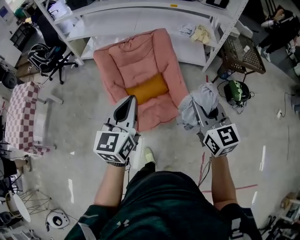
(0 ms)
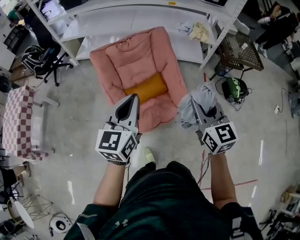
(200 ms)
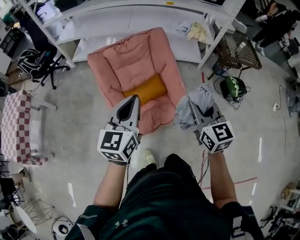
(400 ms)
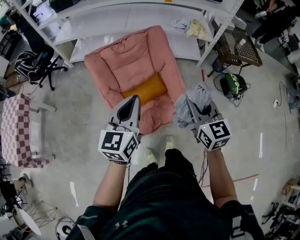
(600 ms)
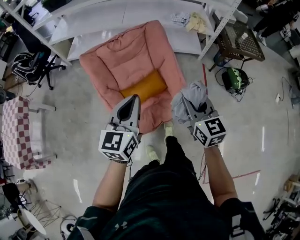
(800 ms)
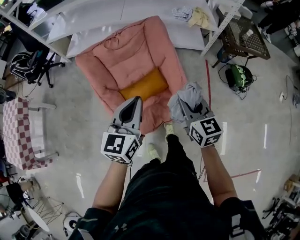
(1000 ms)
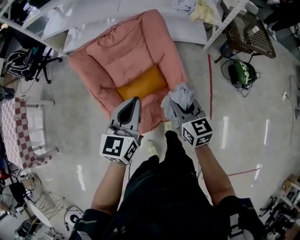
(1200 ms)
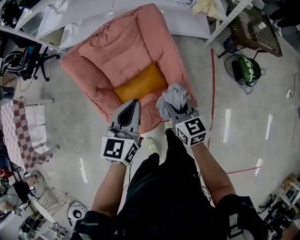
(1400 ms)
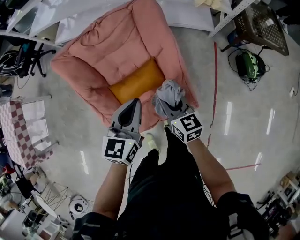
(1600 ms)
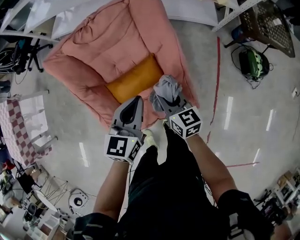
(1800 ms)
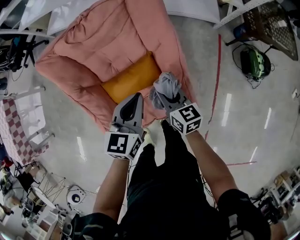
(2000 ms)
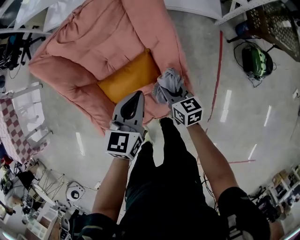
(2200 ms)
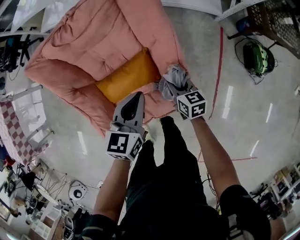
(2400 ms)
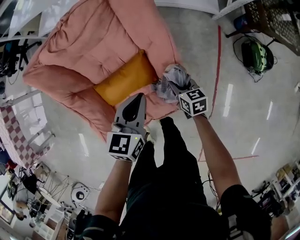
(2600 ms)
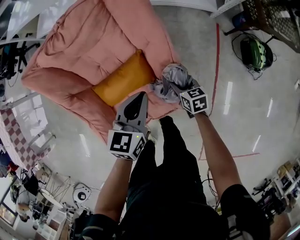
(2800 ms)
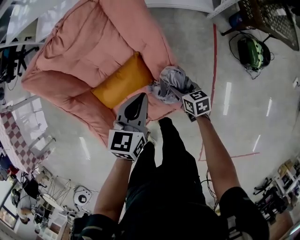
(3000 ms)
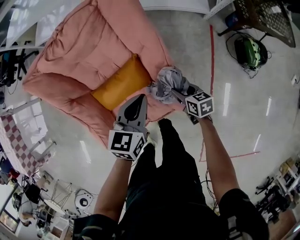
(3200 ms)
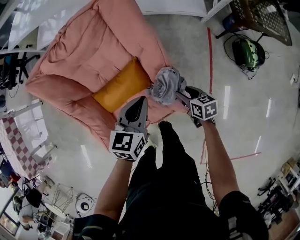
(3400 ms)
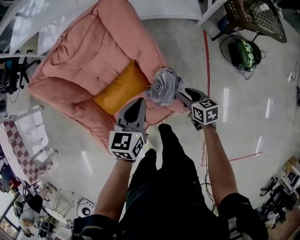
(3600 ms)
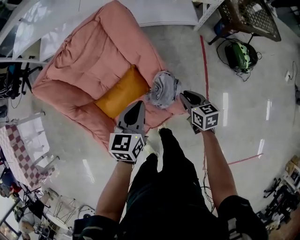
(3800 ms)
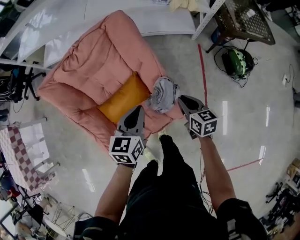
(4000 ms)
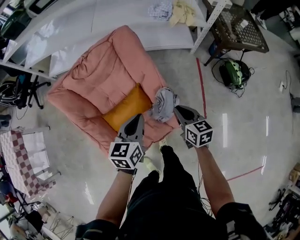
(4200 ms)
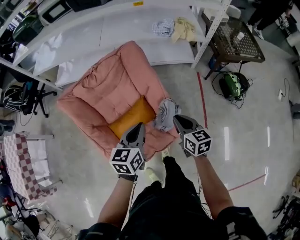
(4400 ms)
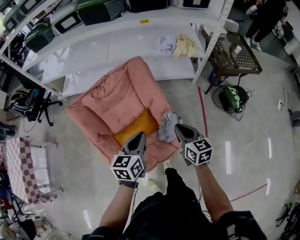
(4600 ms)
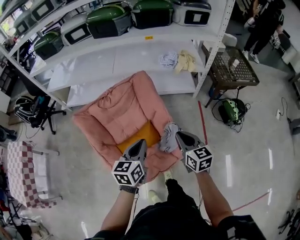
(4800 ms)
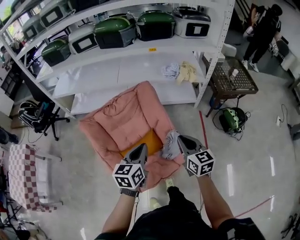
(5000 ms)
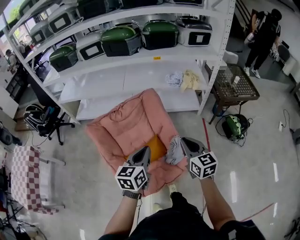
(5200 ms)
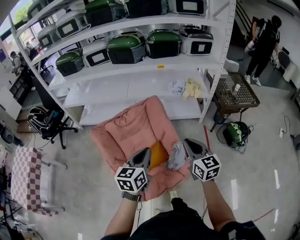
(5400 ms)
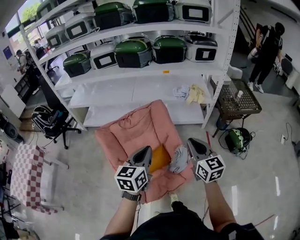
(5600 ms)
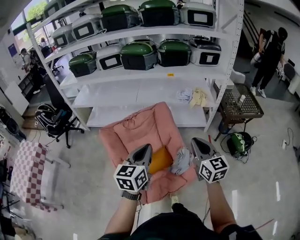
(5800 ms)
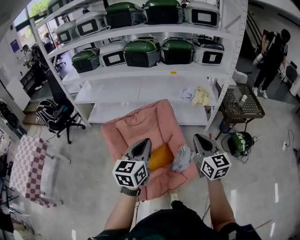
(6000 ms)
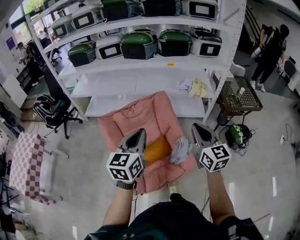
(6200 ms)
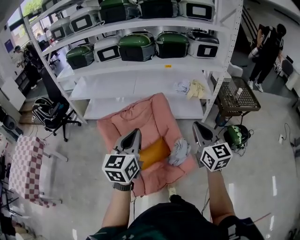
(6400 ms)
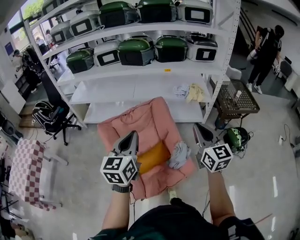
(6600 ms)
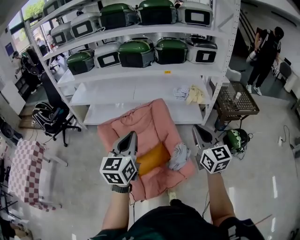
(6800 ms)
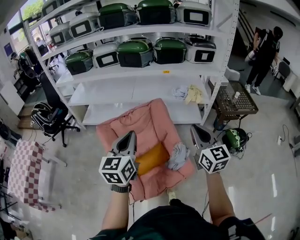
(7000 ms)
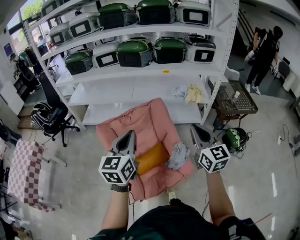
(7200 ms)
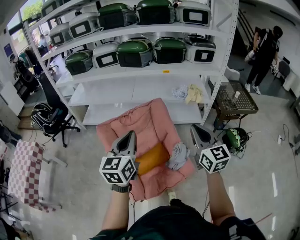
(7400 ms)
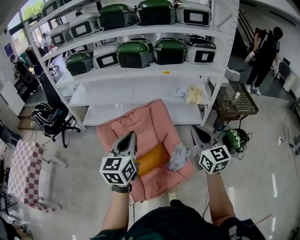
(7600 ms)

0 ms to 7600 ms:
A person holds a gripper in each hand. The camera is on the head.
0 ms to 1600 ms: The right gripper heads downward and forward, covering roughly 40 cm, and turns by some 30 degrees; the left gripper is displaced forward and downward by about 35 cm.
1600 ms to 3000 ms: The right gripper heads downward and to the right, covering roughly 30 cm, changes its angle by roughly 30 degrees, and opens its fingers. The left gripper heads downward, to the right and forward, covering approximately 20 cm.
3000 ms to 4600 ms: The right gripper moves upward, approximately 35 cm, turns by some 30 degrees, and closes; the left gripper moves upward and backward, about 20 cm.
4600 ms to 6000 ms: Both grippers travel together upward, approximately 25 cm. The right gripper swivels some 20 degrees.
6000 ms to 7600 ms: The left gripper changes place by some 5 cm.

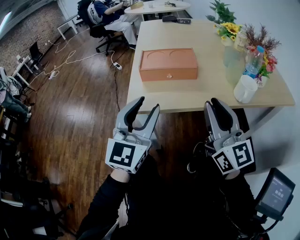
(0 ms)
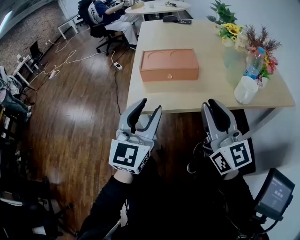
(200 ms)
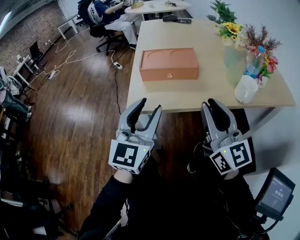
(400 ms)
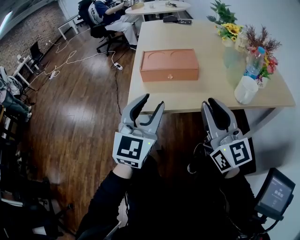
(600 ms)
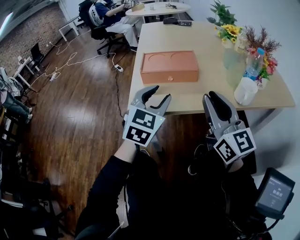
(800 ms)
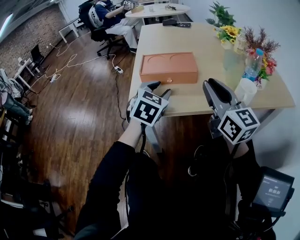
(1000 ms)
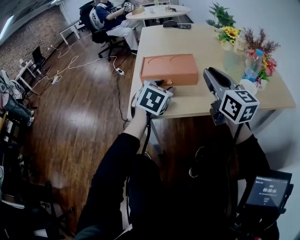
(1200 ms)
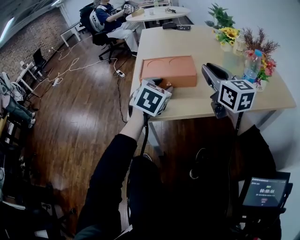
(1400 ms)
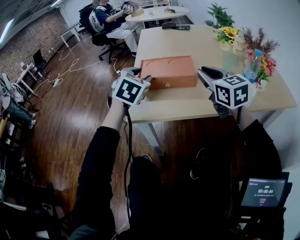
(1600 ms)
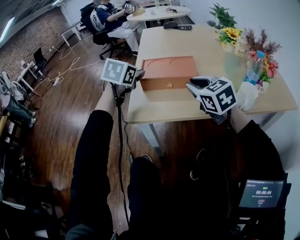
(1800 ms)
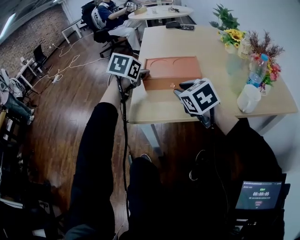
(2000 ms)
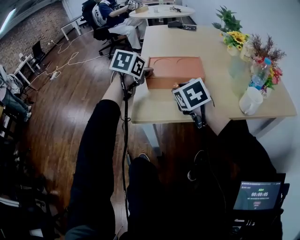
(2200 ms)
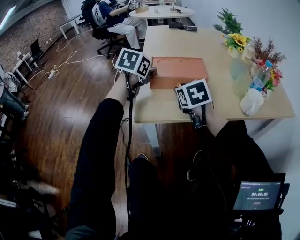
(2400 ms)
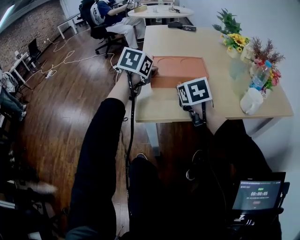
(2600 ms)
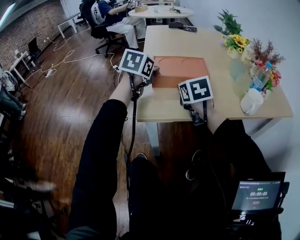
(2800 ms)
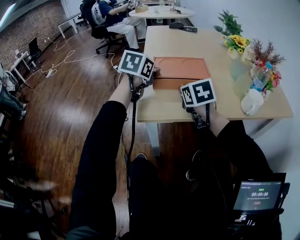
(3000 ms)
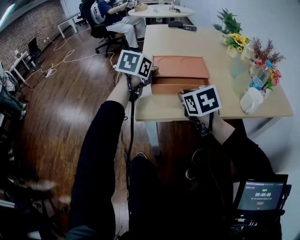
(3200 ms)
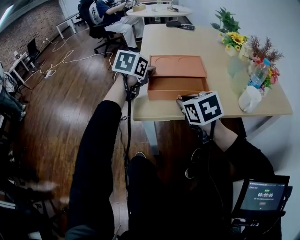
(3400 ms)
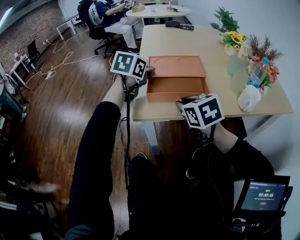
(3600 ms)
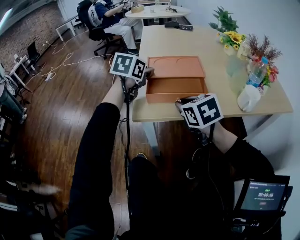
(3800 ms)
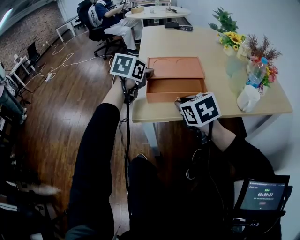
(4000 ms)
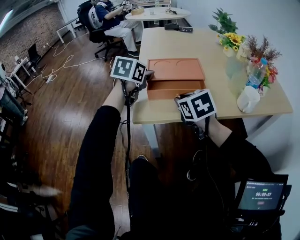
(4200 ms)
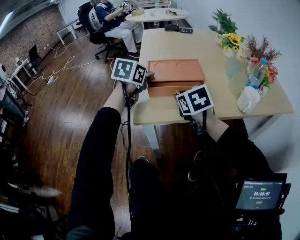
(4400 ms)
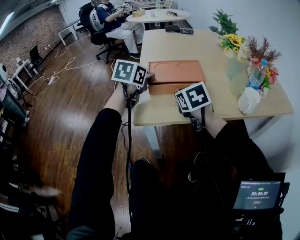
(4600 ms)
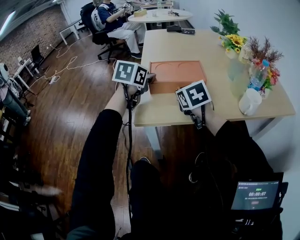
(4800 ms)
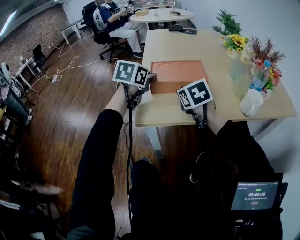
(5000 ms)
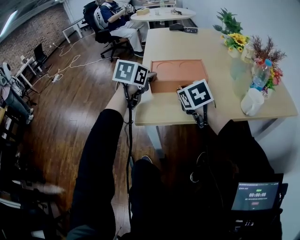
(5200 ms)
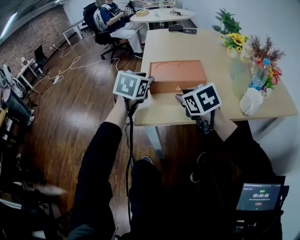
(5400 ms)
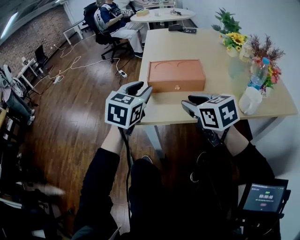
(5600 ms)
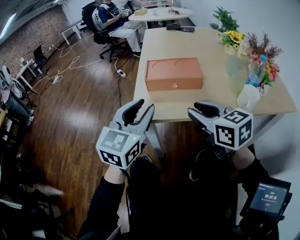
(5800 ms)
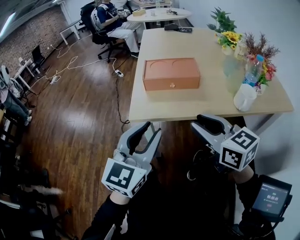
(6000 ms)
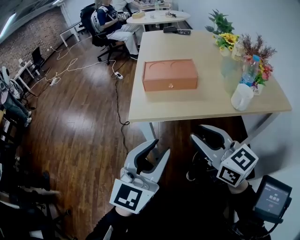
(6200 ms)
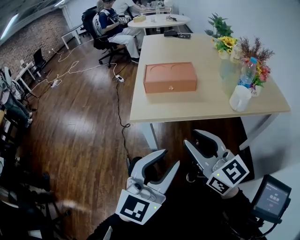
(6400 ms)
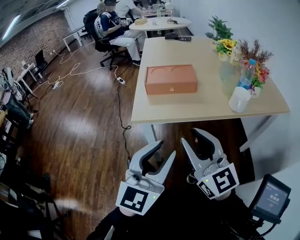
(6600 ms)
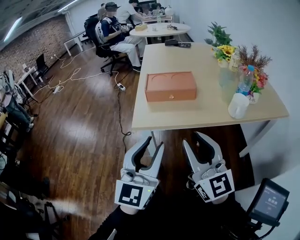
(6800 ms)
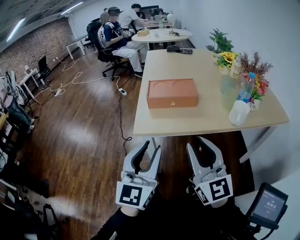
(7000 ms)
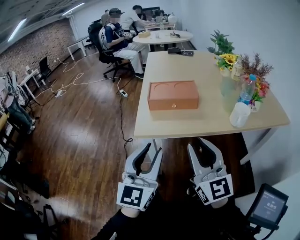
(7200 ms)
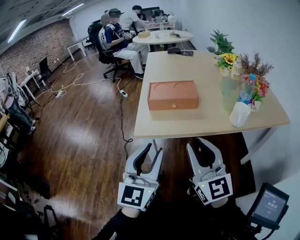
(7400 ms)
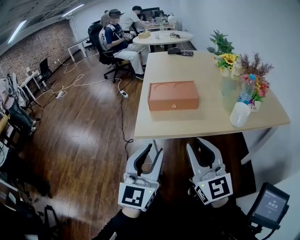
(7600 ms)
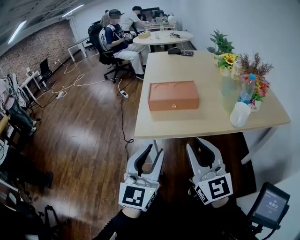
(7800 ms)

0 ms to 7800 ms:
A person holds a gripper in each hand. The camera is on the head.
0 ms to 1600 ms: Both grippers travel together forward, roughly 20 cm. The right gripper rotates roughly 30 degrees; the left gripper tips its fingers downward by approximately 40 degrees.
1600 ms to 3200 ms: The right gripper heads to the left and downward, covering some 15 cm, and turns by some 30 degrees, while the left gripper ends up about 5 cm from where it was, and turns by about 30 degrees.
3200 ms to 4600 ms: The grippers stay close to where they were, moving slightly.
4600 ms to 6200 ms: Both grippers move backward, roughly 30 cm. The right gripper tips its fingers upward by approximately 30 degrees; the left gripper points its fingers about 40 degrees further upward.
6200 ms to 7800 ms: The right gripper turns by approximately 30 degrees.

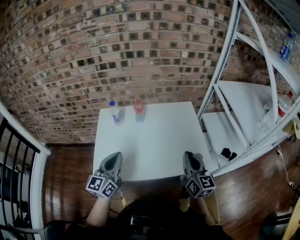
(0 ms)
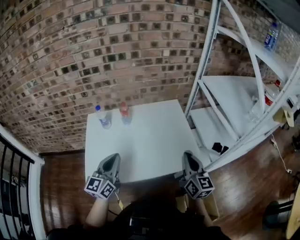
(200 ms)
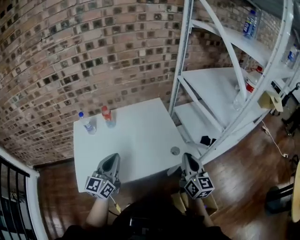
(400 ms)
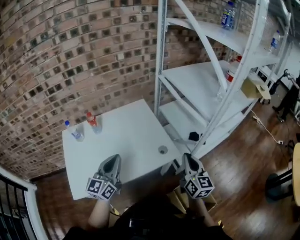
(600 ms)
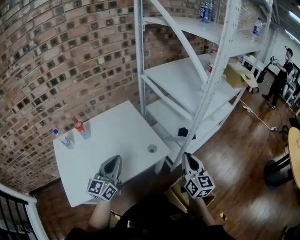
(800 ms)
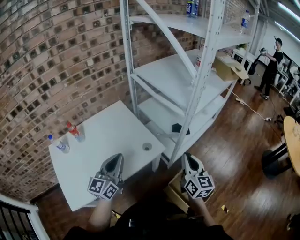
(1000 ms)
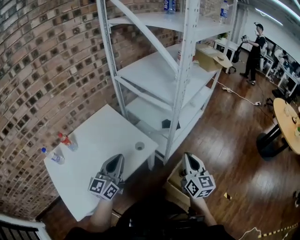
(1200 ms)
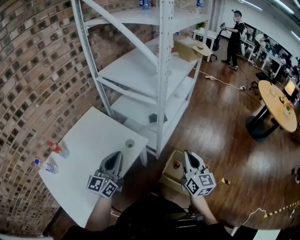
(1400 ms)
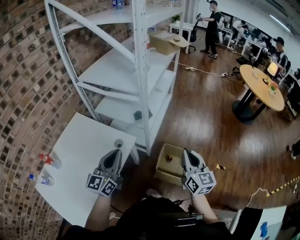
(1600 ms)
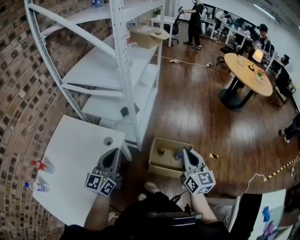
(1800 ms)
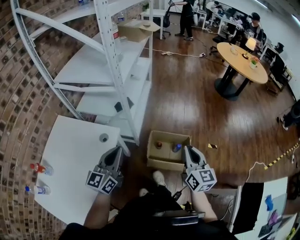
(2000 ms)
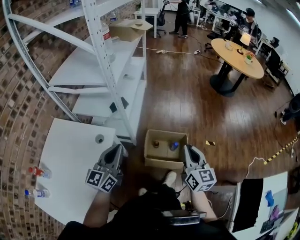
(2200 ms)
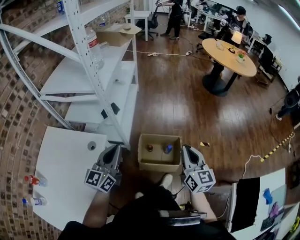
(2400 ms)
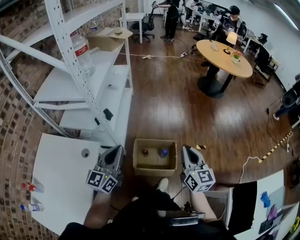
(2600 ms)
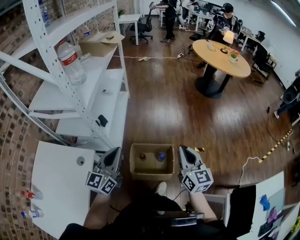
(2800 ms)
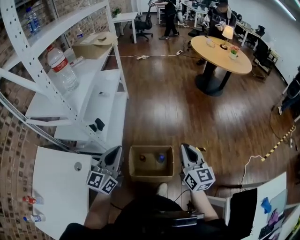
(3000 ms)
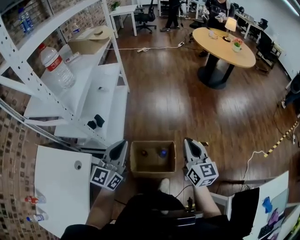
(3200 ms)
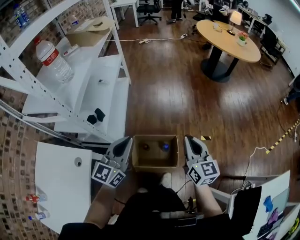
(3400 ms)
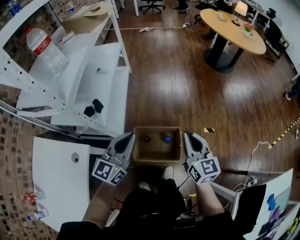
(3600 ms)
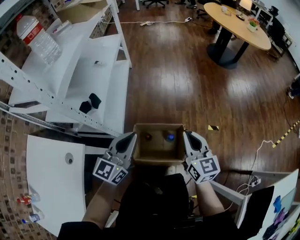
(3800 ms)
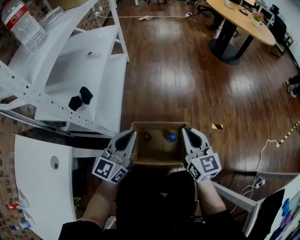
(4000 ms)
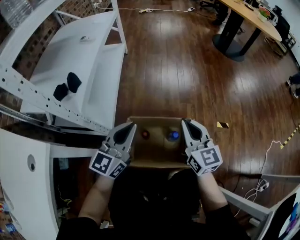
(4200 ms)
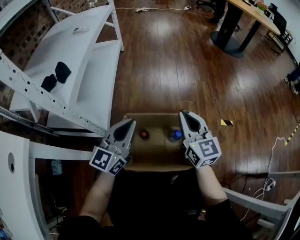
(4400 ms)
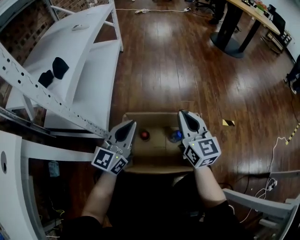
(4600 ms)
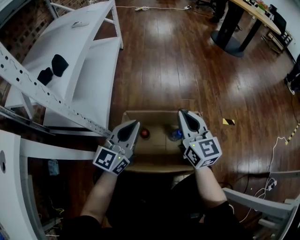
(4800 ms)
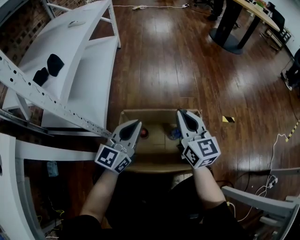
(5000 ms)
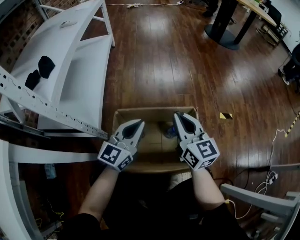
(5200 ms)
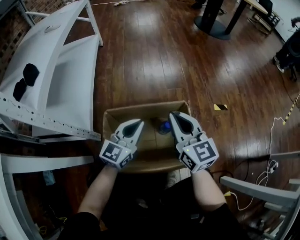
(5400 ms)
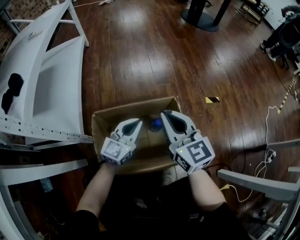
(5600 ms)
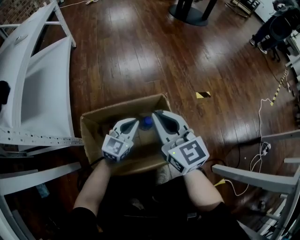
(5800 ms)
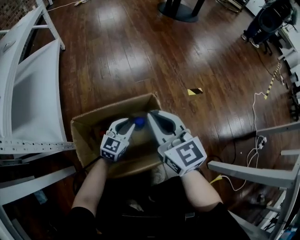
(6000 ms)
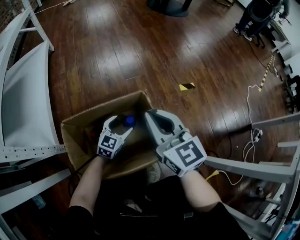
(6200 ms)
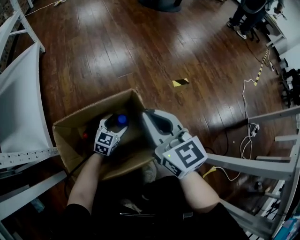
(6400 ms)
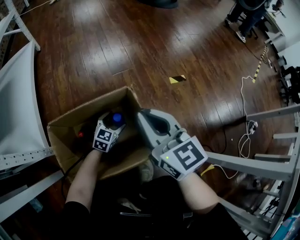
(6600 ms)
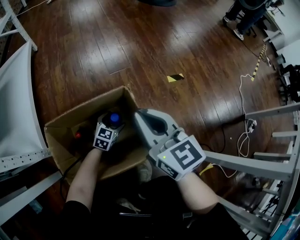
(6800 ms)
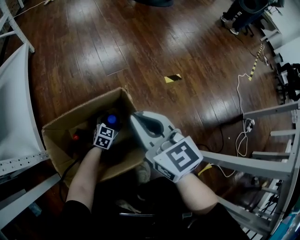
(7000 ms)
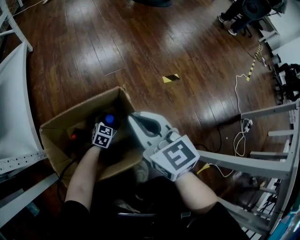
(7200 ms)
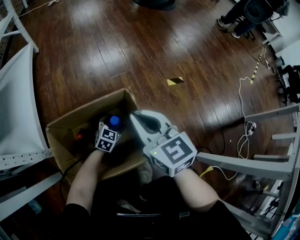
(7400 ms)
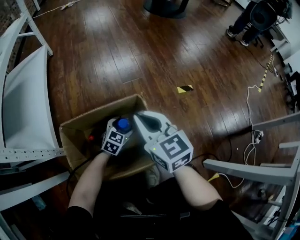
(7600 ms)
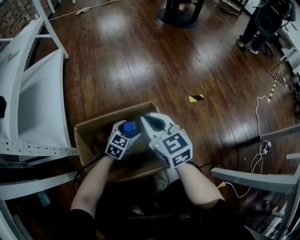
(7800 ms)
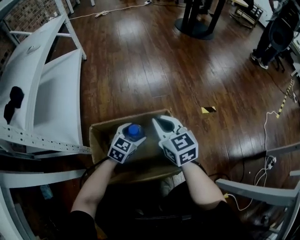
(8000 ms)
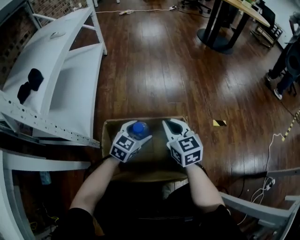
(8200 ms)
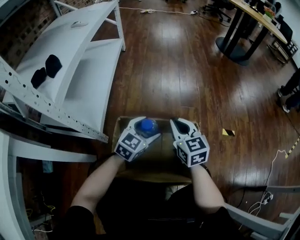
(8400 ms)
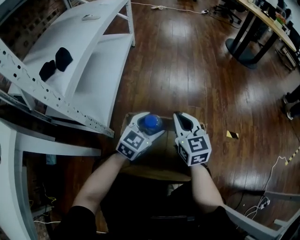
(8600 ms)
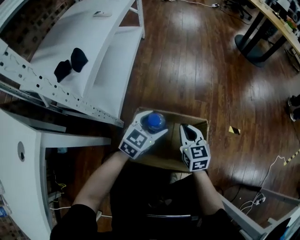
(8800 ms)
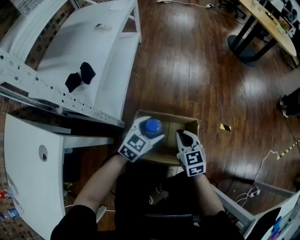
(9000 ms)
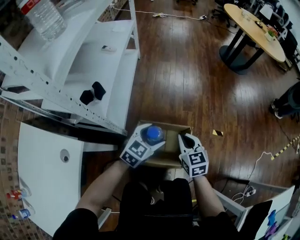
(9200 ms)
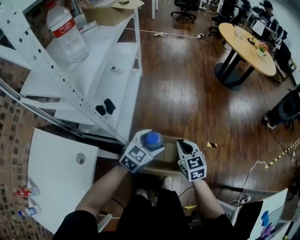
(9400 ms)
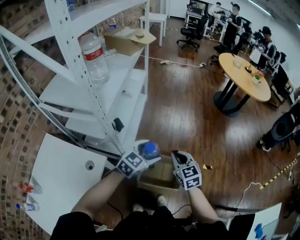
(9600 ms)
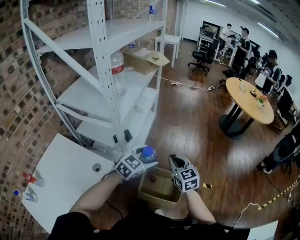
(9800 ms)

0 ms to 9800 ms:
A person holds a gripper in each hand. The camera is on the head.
0 ms to 1400 ms: The right gripper shifts by about 35 cm, and turns by about 50 degrees; the left gripper moves approximately 35 cm, and turns by some 50 degrees.
1400 ms to 2800 ms: The right gripper ends up some 25 cm from where it was, and swivels about 30 degrees. The left gripper moves about 30 cm, and swivels roughly 30 degrees.
2800 ms to 4200 ms: The two grippers go some 40 cm downward and forward.
4200 ms to 5600 ms: The left gripper is displaced downward and to the right by about 30 cm, and rotates about 20 degrees, while the right gripper moves downward, approximately 15 cm.
5600 ms to 7000 ms: The right gripper goes about 10 cm to the right. The left gripper is displaced downward by about 30 cm, rotates about 30 degrees, and opens.
7000 ms to 8400 ms: The right gripper moves to the left and forward, approximately 15 cm. The left gripper goes approximately 30 cm upward and to the left, and rotates some 20 degrees.
8400 ms to 9800 ms: Both grippers travel together upward, some 60 cm.
